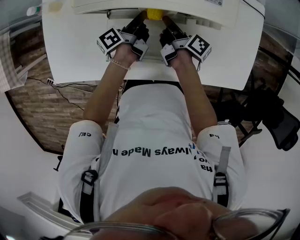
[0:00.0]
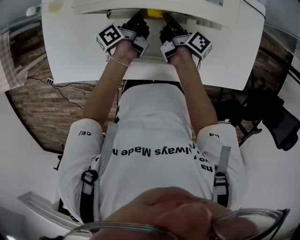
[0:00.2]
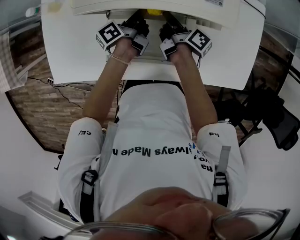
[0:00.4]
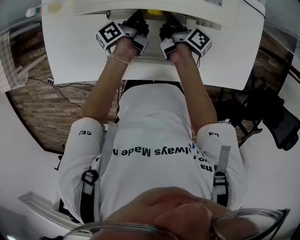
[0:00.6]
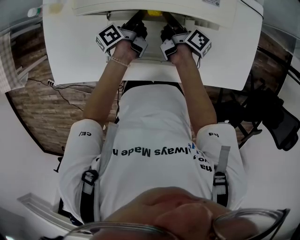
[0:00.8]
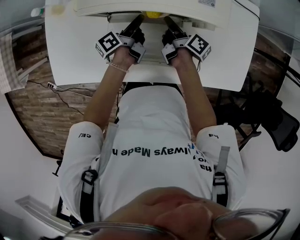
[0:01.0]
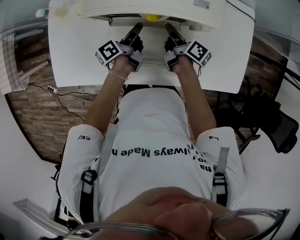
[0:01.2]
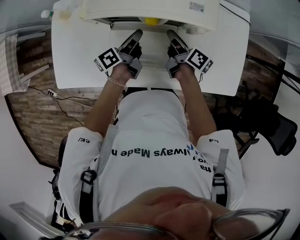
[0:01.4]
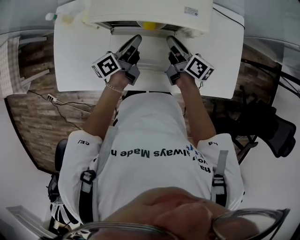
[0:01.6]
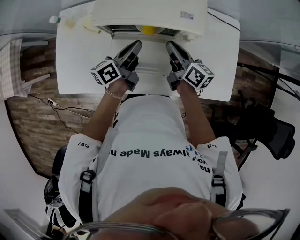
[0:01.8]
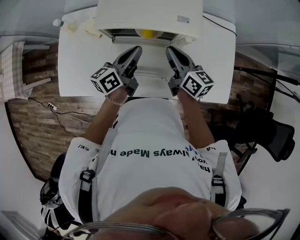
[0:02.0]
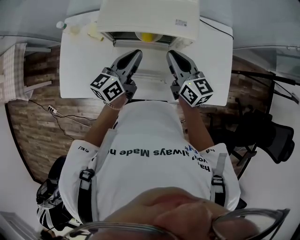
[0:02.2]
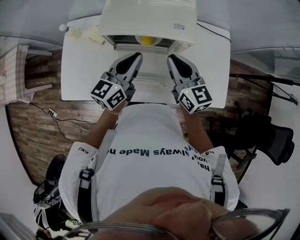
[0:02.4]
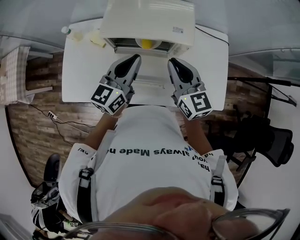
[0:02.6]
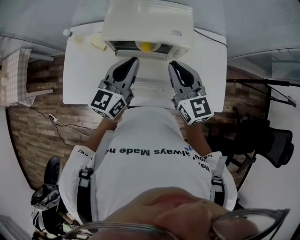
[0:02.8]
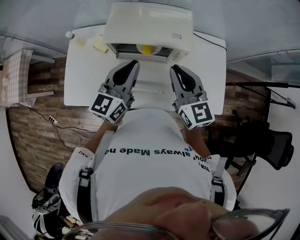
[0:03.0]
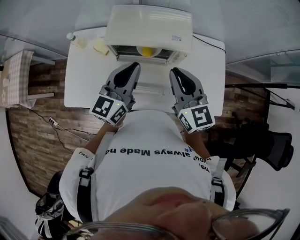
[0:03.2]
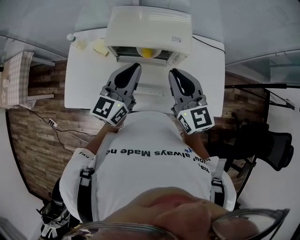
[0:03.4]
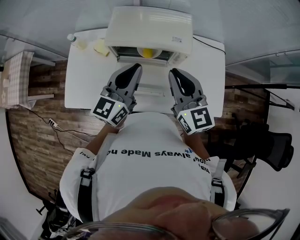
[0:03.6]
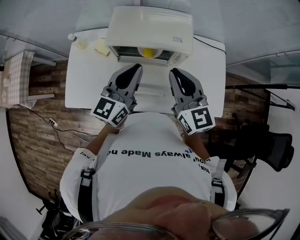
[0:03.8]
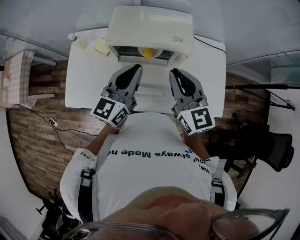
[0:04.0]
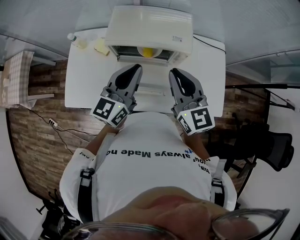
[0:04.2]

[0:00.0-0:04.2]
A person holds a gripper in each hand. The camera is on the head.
0:00.0 to 0:01.4: Both grippers move upward, about 5 cm.
0:01.4 to 0:02.8: The grippers both shift upward by about 25 cm. The left gripper rotates around the line of its fingers by approximately 60 degrees, clockwise from behind, while the right gripper rolls counterclockwise, seen from behind, by some 70 degrees.
0:02.8 to 0:04.2: The grippers stay close to where they were, moving slightly.

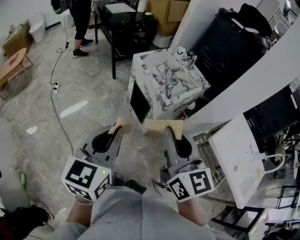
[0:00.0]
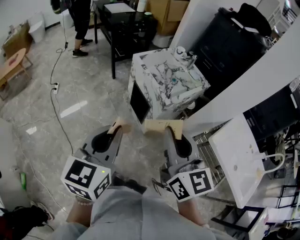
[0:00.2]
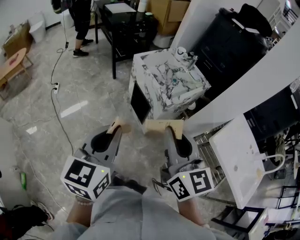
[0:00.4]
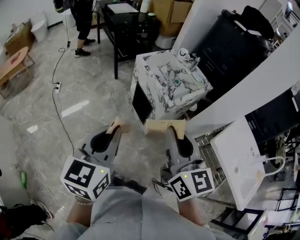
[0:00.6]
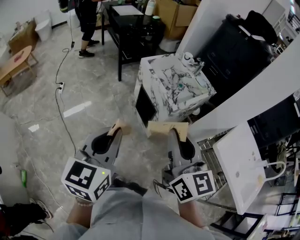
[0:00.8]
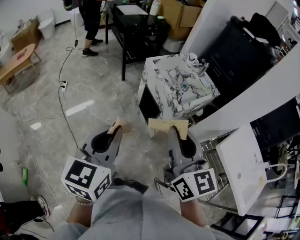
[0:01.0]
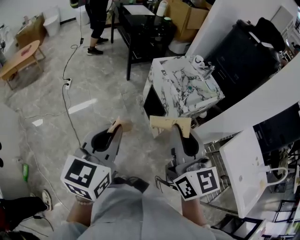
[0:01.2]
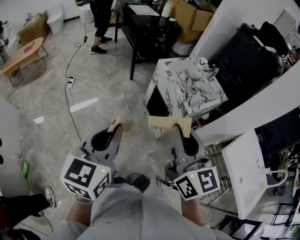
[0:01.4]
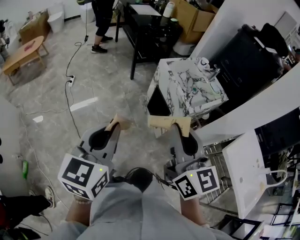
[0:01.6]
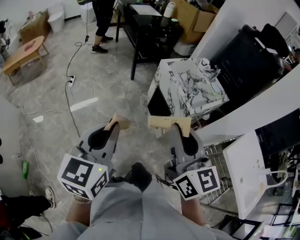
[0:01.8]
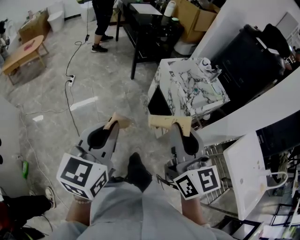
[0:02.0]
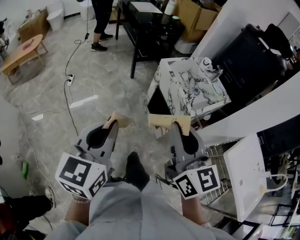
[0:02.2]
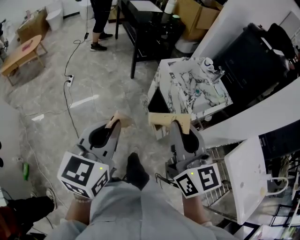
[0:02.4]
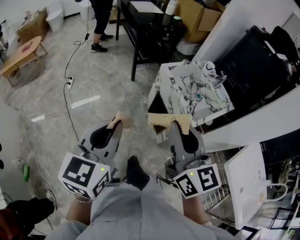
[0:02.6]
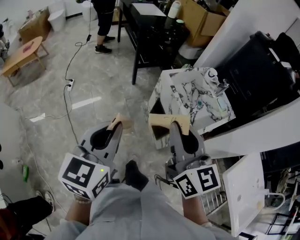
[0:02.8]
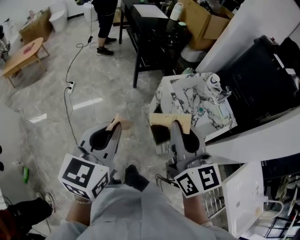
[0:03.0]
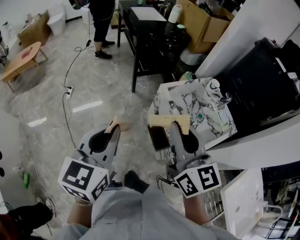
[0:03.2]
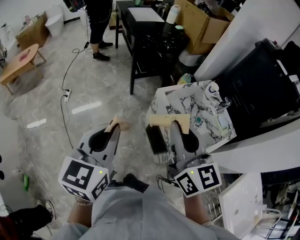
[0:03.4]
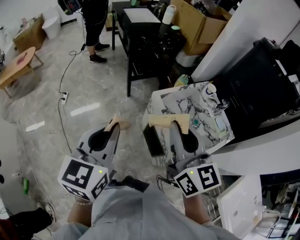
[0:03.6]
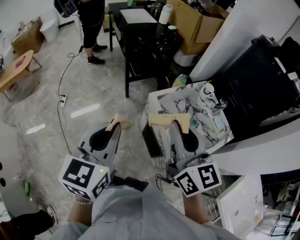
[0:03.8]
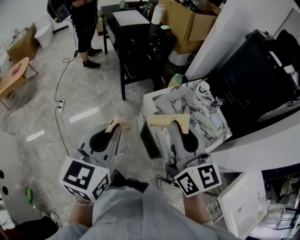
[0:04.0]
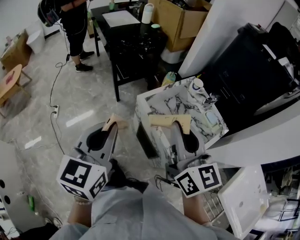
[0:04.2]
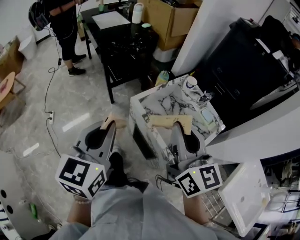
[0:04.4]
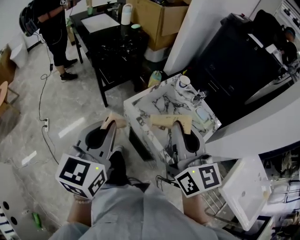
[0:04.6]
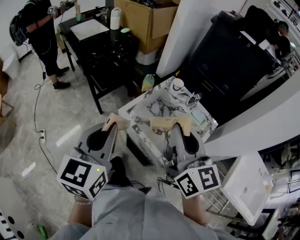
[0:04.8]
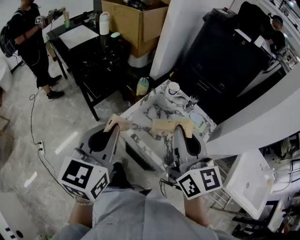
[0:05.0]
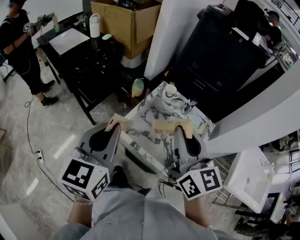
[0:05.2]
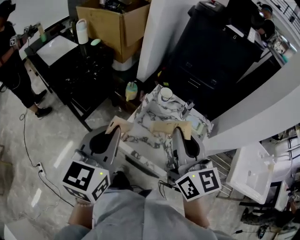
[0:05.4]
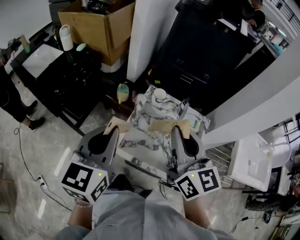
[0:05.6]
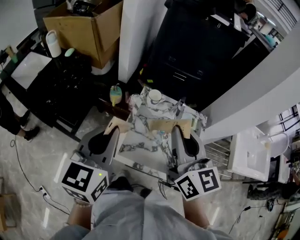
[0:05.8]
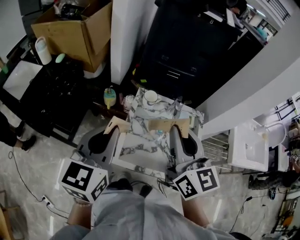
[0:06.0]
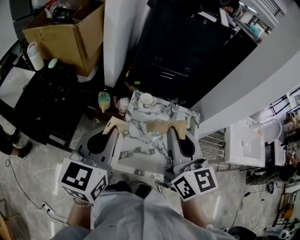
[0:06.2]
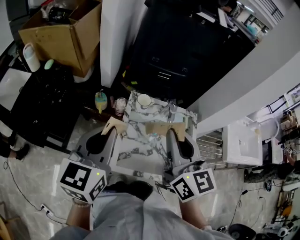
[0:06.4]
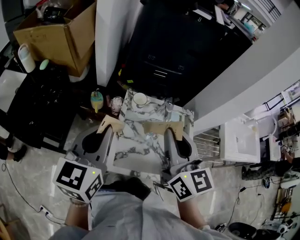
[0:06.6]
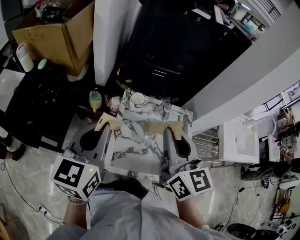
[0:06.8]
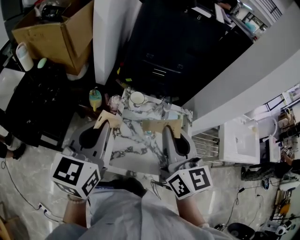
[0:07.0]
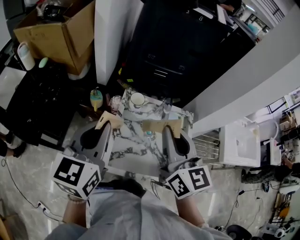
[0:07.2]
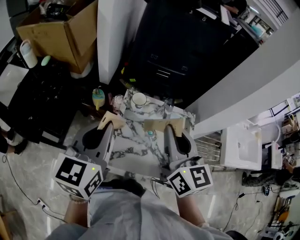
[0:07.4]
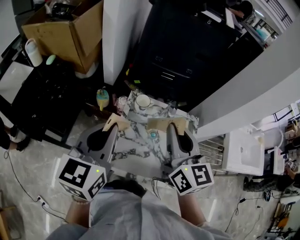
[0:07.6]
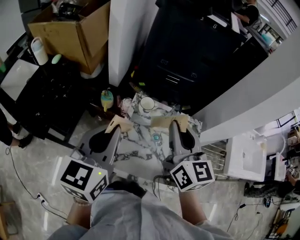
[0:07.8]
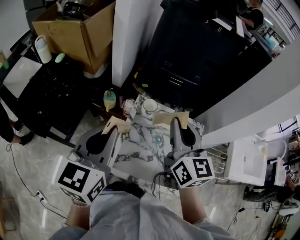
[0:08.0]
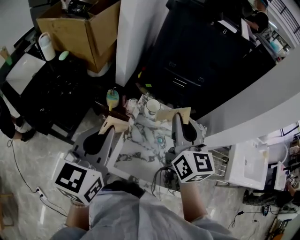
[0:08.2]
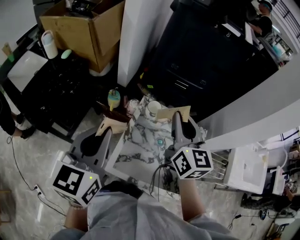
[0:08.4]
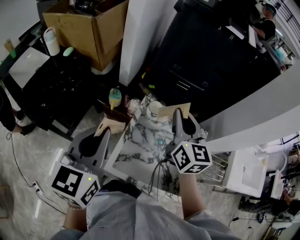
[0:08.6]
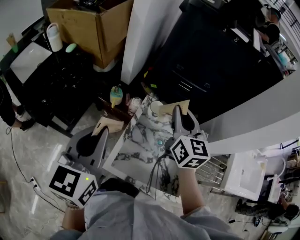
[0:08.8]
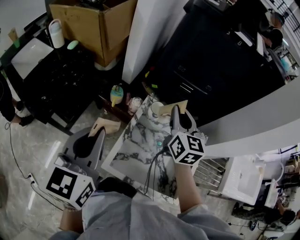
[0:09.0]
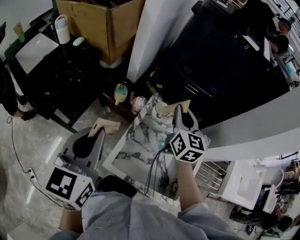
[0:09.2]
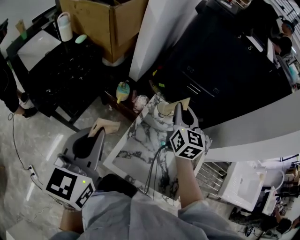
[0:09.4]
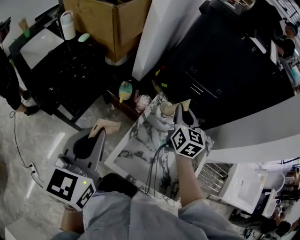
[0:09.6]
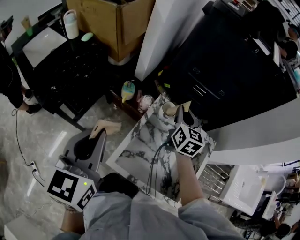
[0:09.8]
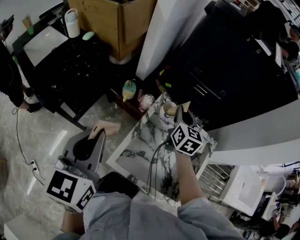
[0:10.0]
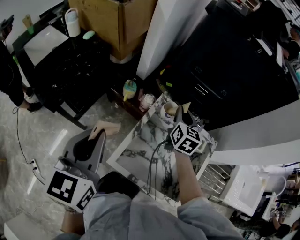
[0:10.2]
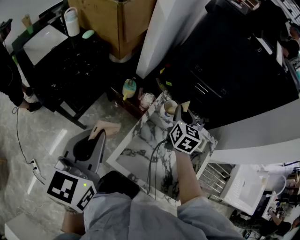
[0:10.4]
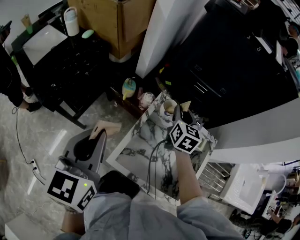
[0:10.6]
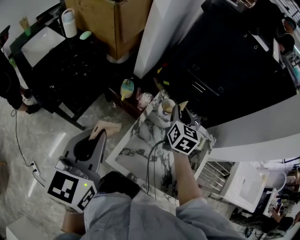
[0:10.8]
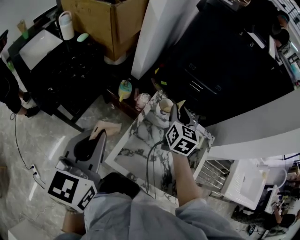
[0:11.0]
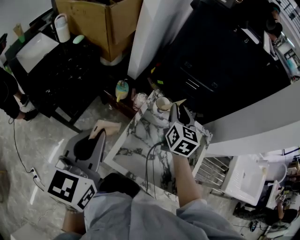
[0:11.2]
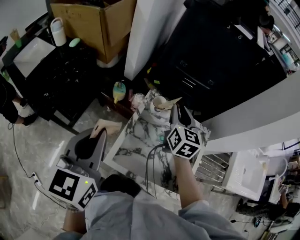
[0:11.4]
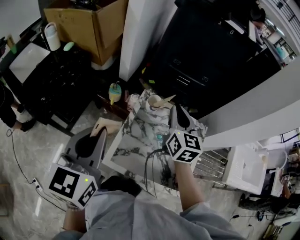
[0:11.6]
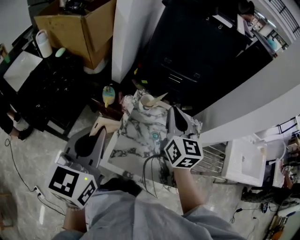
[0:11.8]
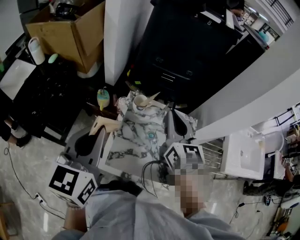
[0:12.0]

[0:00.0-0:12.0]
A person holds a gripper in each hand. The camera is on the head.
0:00.0 to 0:01.6: The two grippers go some 10 cm to the left.
0:01.6 to 0:03.0: The two grippers go roughly 25 cm forward.
0:03.0 to 0:04.4: Both grippers travel together forward and to the right, roughly 20 cm.
0:04.4 to 0:06.0: The right gripper ends up roughly 25 cm from where it was, and turns by approximately 40 degrees, while the left gripper shifts by approximately 35 cm, and turns by about 40 degrees.
0:06.0 to 0:07.6: The grippers both shift forward by approximately 5 cm.
0:07.6 to 0:09.0: The right gripper shifts some 15 cm forward and downward; the left gripper travels to the left by some 5 cm.
0:09.0 to 0:10.4: The right gripper goes about 10 cm downward.
0:10.4 to 0:12.0: The right gripper moves upward and backward, about 20 cm. Meanwhile the left gripper heads to the right, covering about 5 cm.

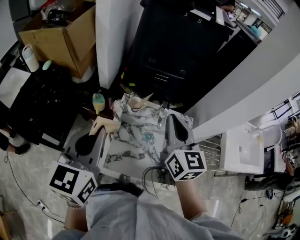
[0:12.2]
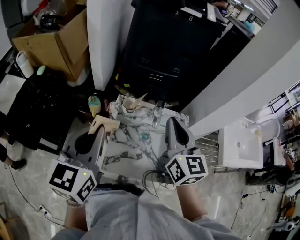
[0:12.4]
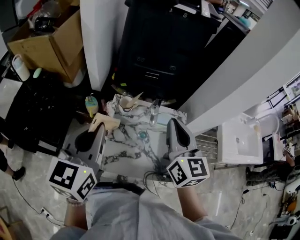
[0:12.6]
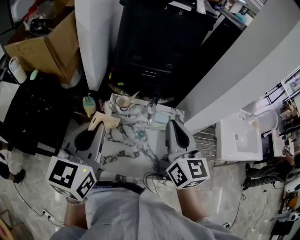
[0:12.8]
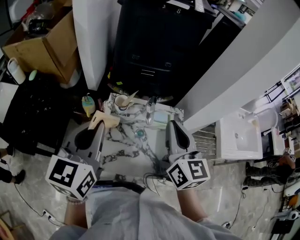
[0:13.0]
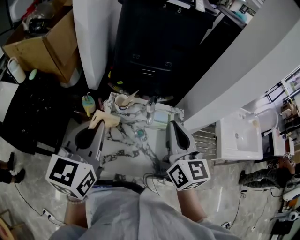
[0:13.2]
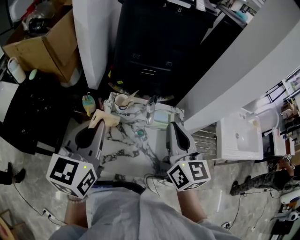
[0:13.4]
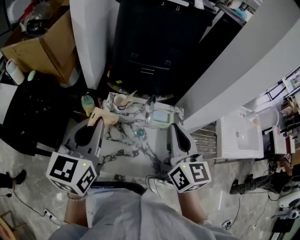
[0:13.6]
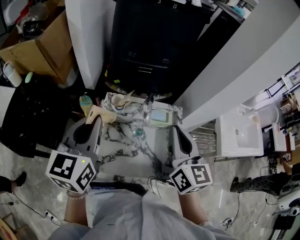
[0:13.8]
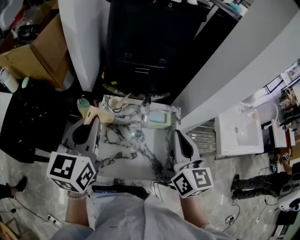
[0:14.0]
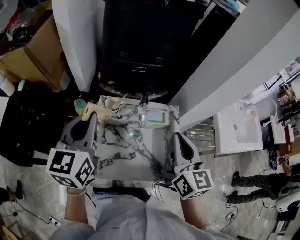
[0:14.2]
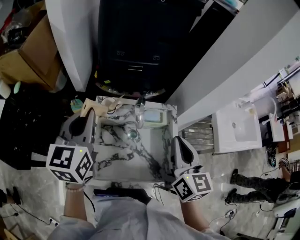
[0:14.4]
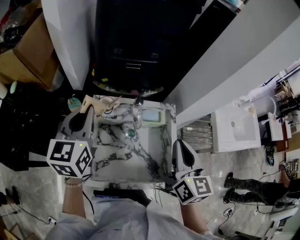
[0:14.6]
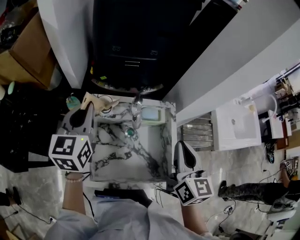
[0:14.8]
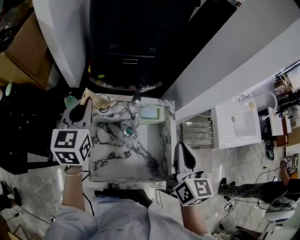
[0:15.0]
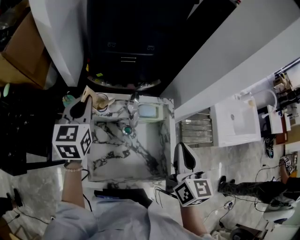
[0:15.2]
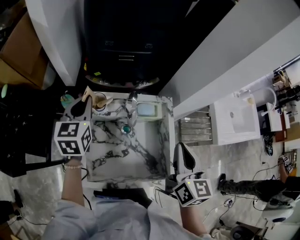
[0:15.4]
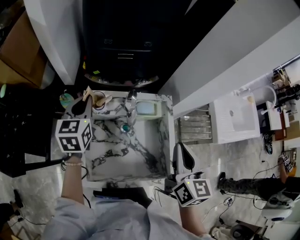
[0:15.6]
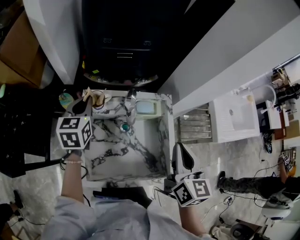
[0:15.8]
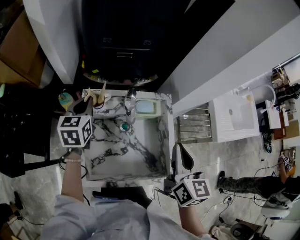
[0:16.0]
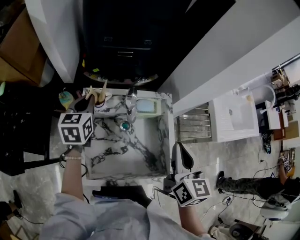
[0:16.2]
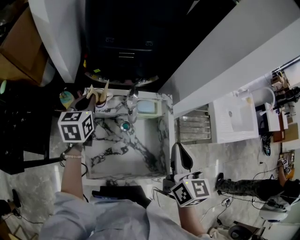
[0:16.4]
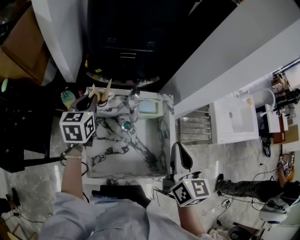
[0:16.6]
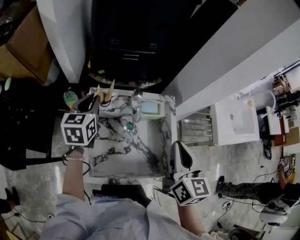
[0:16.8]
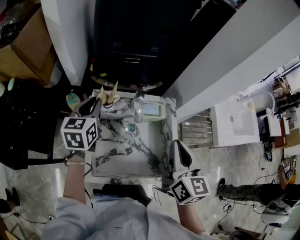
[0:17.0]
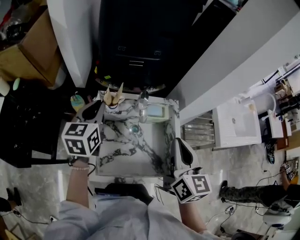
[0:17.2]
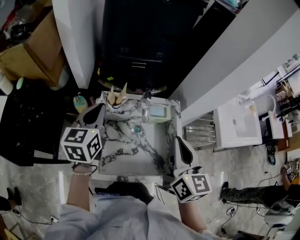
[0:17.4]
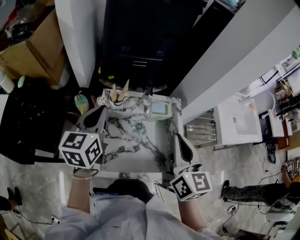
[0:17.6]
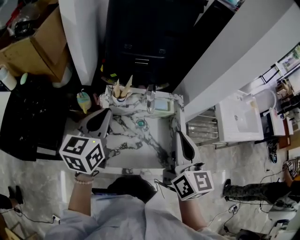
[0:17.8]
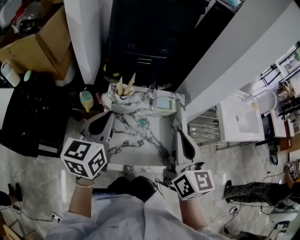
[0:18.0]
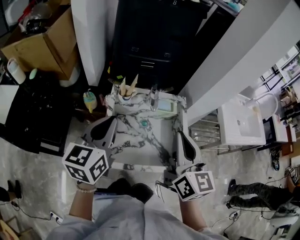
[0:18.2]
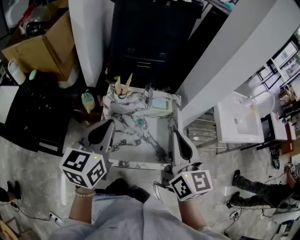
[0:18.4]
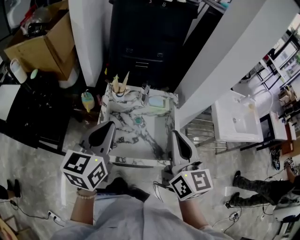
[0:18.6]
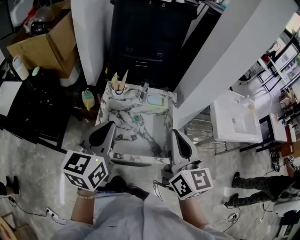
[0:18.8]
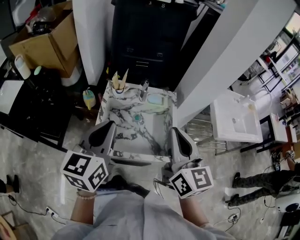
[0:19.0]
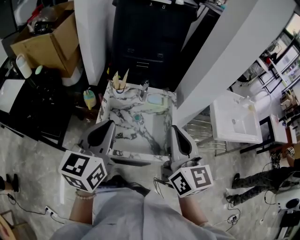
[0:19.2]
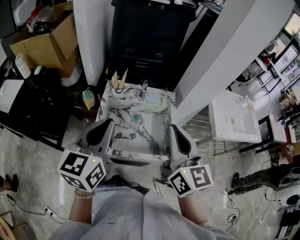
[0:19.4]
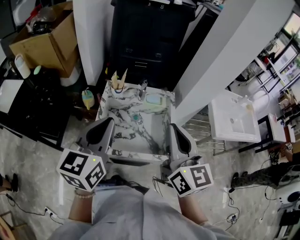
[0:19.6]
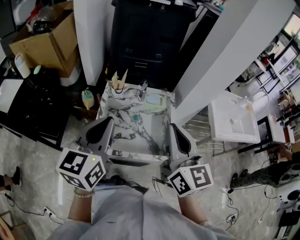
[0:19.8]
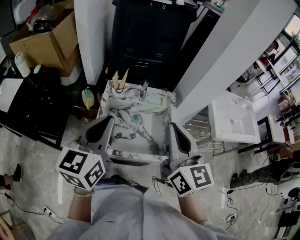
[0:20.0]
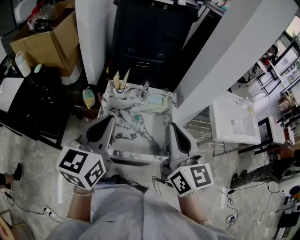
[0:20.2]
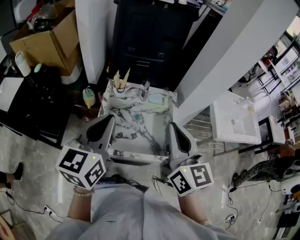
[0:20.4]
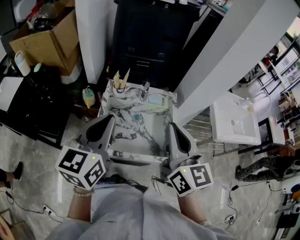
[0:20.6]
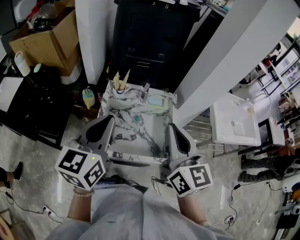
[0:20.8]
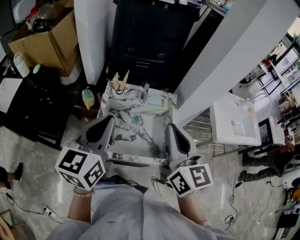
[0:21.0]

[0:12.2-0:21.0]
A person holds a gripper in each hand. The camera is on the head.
0:12.2 to 0:13.6: The right gripper goes roughly 5 cm to the right. The left gripper ends up approximately 5 cm from where it was.
0:13.6 to 0:15.2: The left gripper moves forward and downward, approximately 20 cm; the right gripper moves to the right and downward, some 10 cm.
0:15.2 to 0:16.6: The left gripper shifts approximately 10 cm downward.
0:16.6 to 0:18.0: The right gripper travels to the left, upward and backward by about 10 cm; the left gripper is displaced backward and upward by roughly 20 cm.
0:18.0 to 0:19.6: The right gripper is displaced backward and upward by roughly 10 cm. Meanwhile the left gripper moves backward, upward and to the right, some 15 cm.
0:19.6 to 0:21.0: There are only small adjustments of the grippers.
